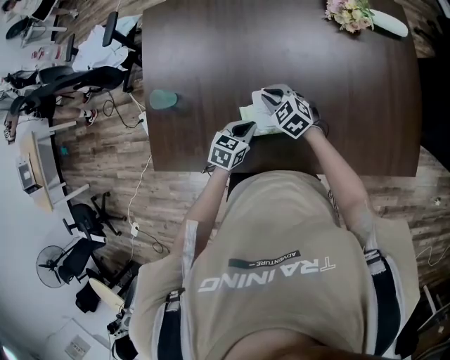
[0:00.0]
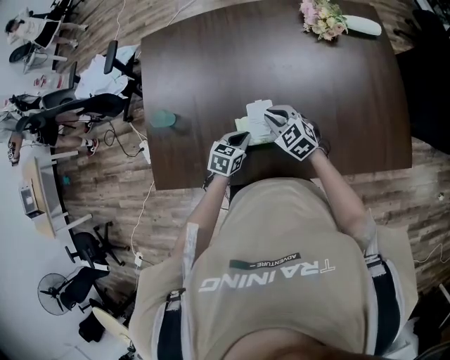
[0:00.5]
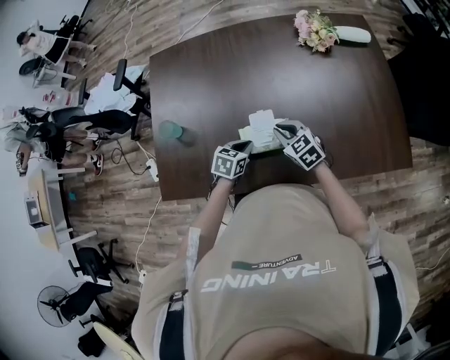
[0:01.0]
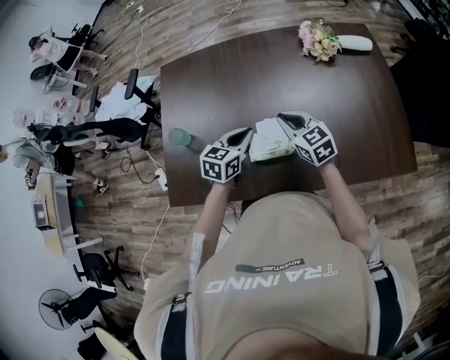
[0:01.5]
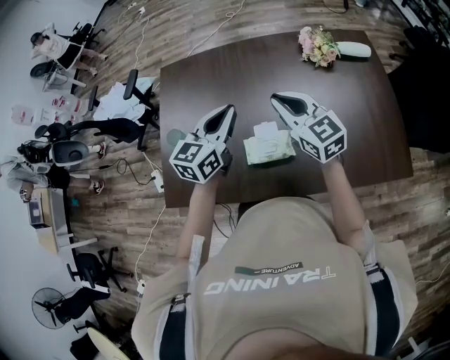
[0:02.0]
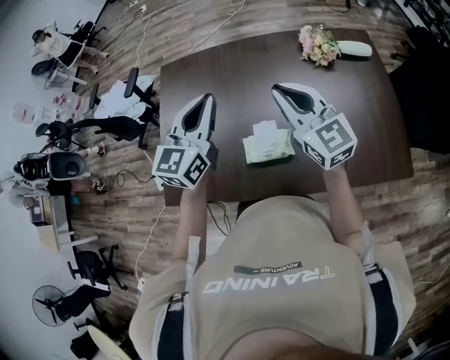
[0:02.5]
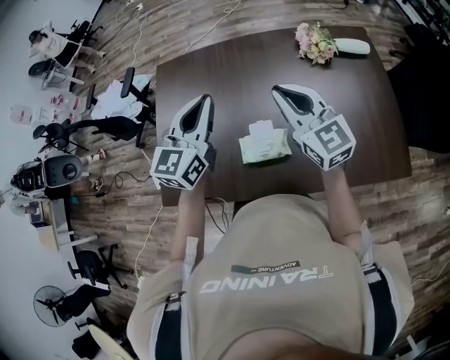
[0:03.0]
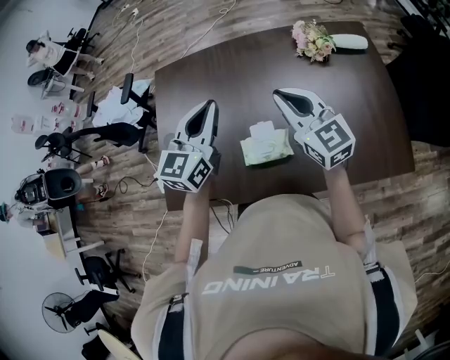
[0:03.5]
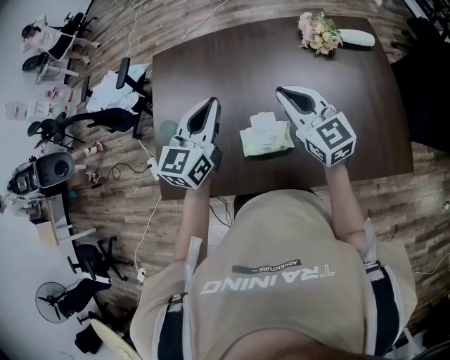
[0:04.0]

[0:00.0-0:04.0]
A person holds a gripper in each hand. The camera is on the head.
0:00.0 to 0:02.0: Both grippers move upward, some 30 cm. The right gripper angles its fingers upward, by about 30 degrees, while the left gripper angles its fingers upward, by approximately 40 degrees.

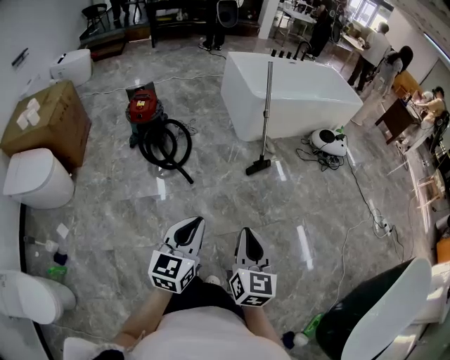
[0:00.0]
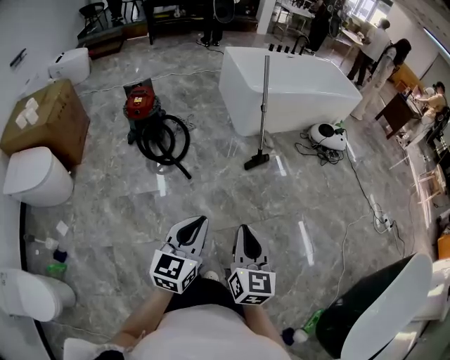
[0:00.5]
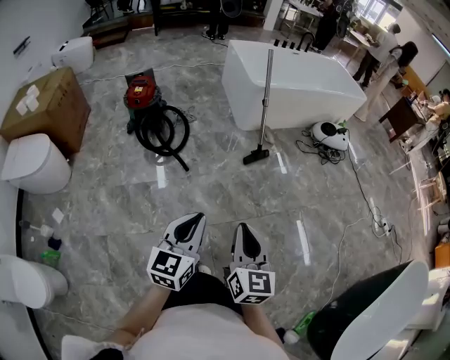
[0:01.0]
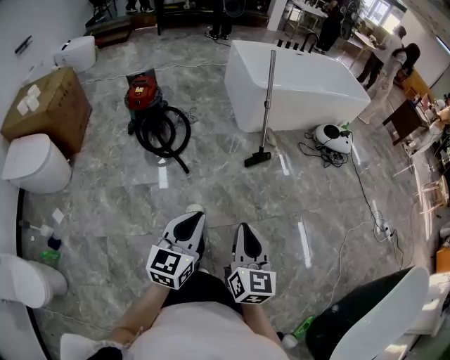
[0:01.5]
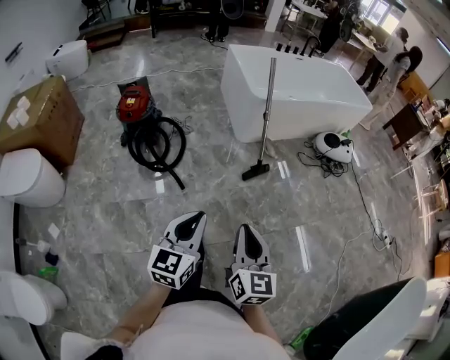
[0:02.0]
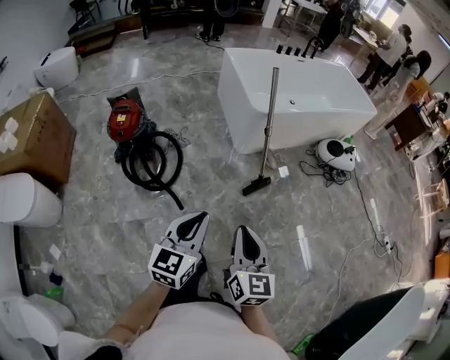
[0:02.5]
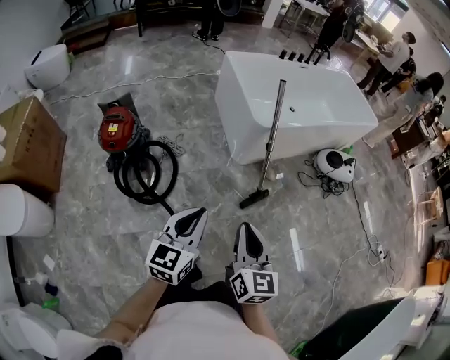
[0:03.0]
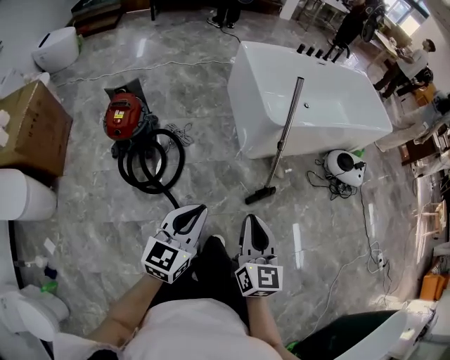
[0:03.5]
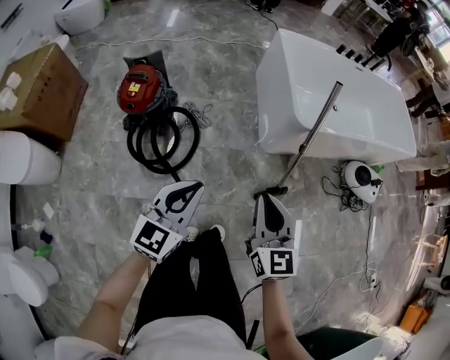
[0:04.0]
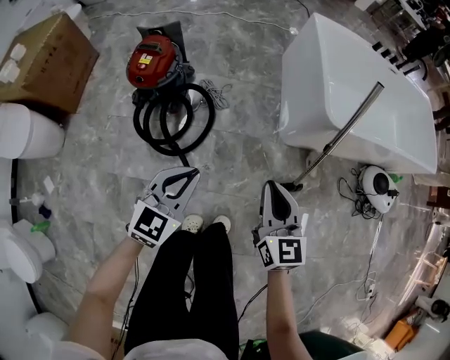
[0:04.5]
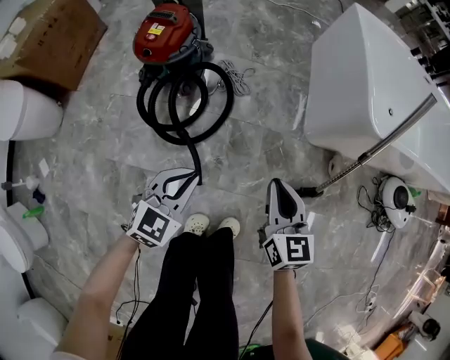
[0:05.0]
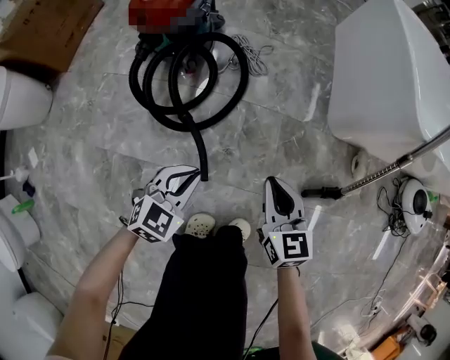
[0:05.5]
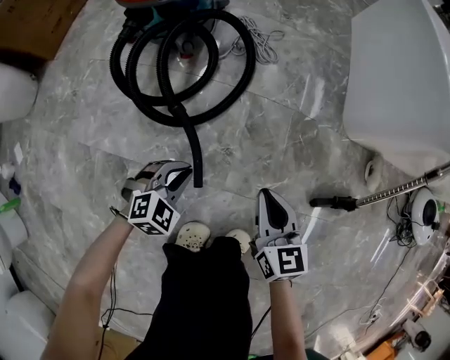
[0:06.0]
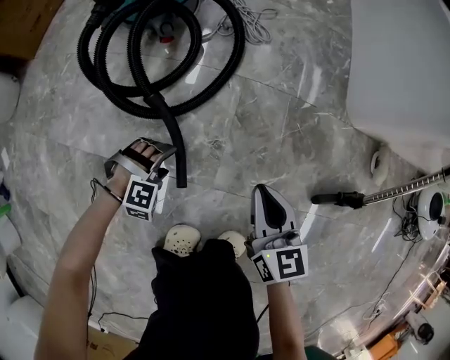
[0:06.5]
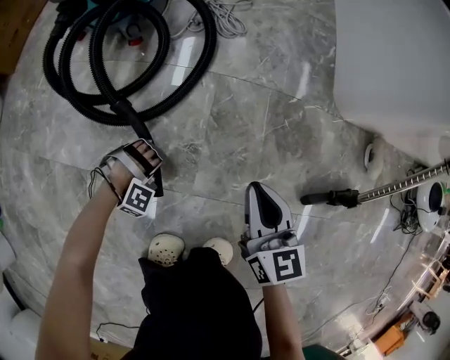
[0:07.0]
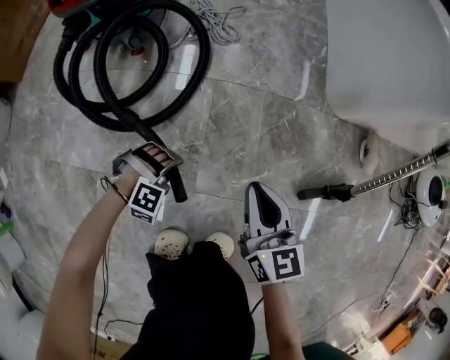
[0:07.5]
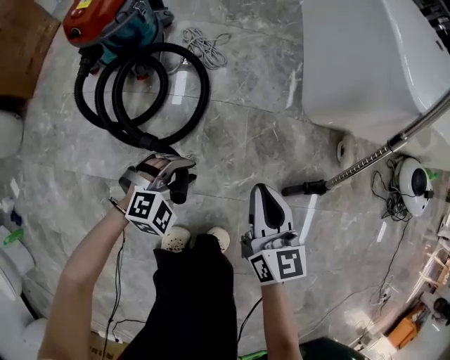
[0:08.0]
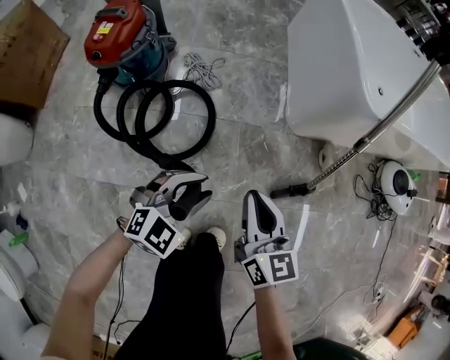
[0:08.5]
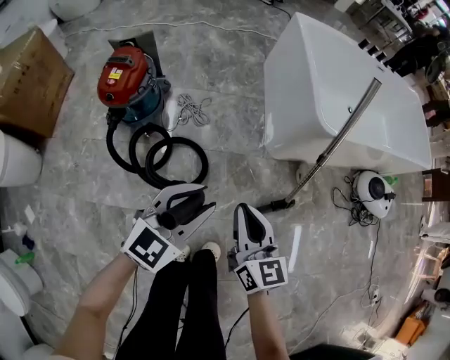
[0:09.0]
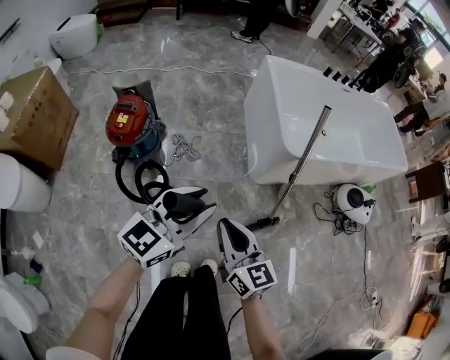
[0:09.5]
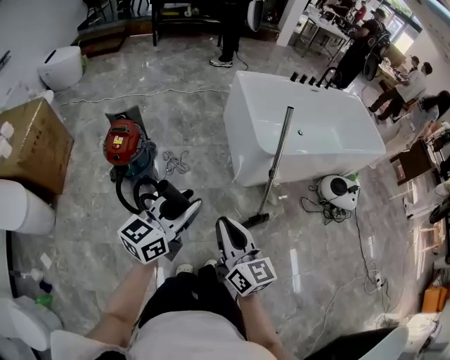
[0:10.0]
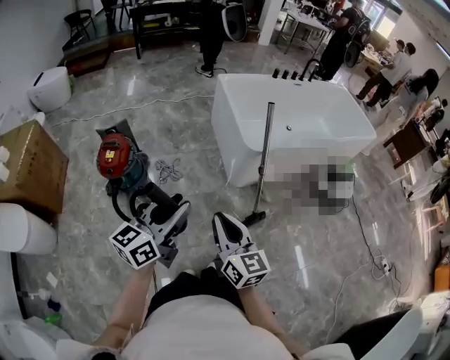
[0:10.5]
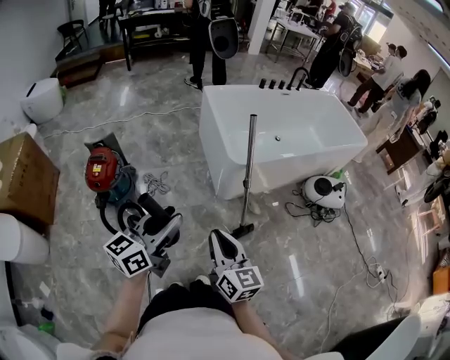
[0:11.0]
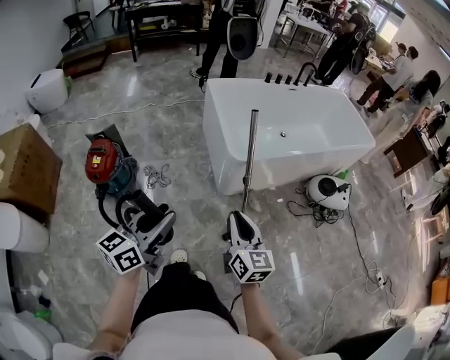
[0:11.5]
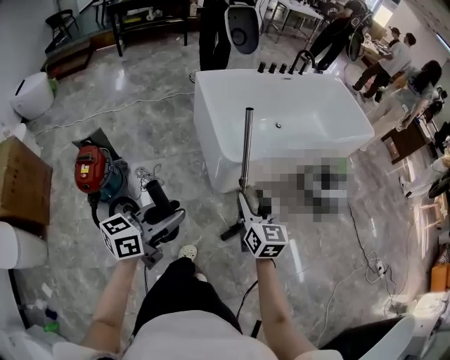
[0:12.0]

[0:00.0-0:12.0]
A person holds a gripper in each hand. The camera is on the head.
0:00.0 to 0:02.0: Both grippers travel together forward, approximately 15 cm.
0:02.0 to 0:04.0: The two grippers travel together, forward, approximately 40 cm. The right gripper rotates some 20 degrees.
0:04.0 to 0:06.0: Both grippers move downward, roughly 60 cm. The left gripper points its fingers about 40 degrees further downward; the right gripper turns by some 30 degrees.
0:06.0 to 0:08.0: The left gripper moves roughly 20 cm downward and comes back, swivels approximately 20 degrees, and opens its fingers. The right gripper changes place by about 15 cm.
0:08.0 to 0:10.0: Both grippers move upward, some 60 cm. The left gripper tilts its fingers some 50 degrees upward.
0:10.0 to 0:12.0: The left gripper travels forward and to the right by about 15 cm, and swivels approximately 20 degrees, while the right gripper heads forward and to the right, covering roughly 30 cm, swivels approximately 20 degrees, and opens its fingers.

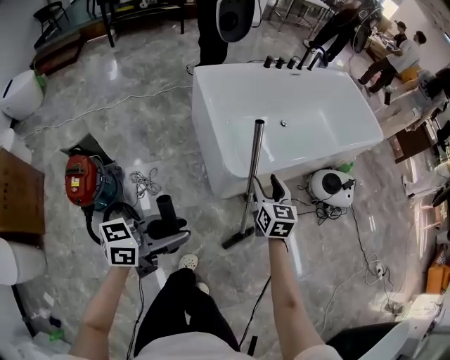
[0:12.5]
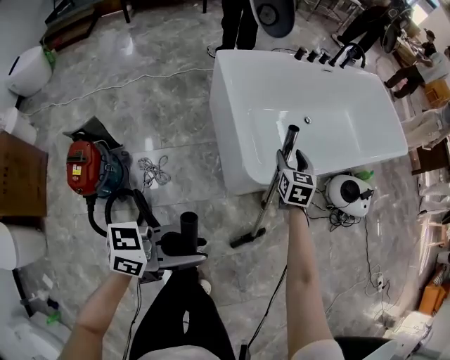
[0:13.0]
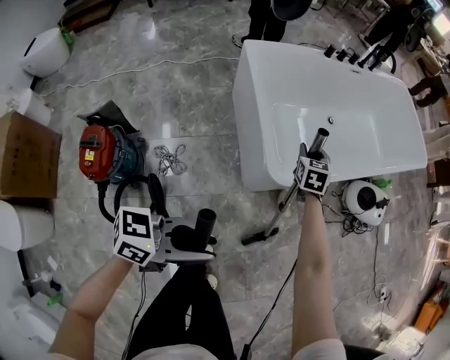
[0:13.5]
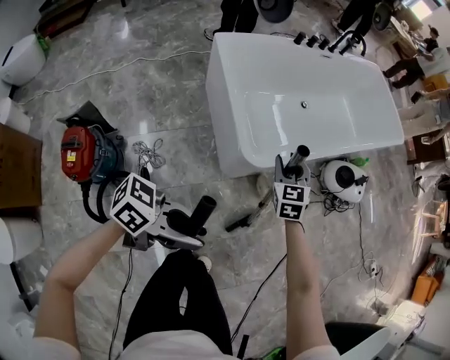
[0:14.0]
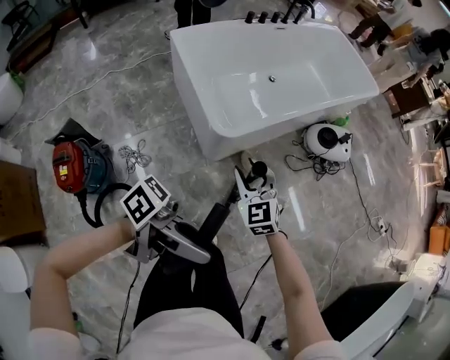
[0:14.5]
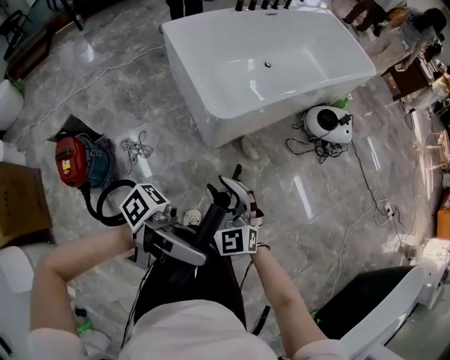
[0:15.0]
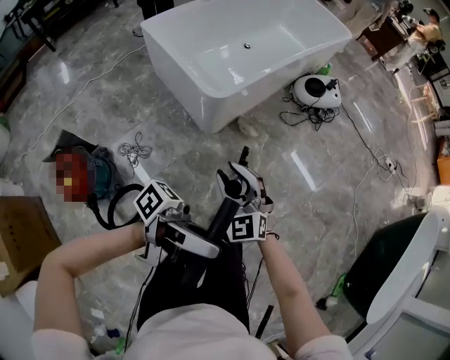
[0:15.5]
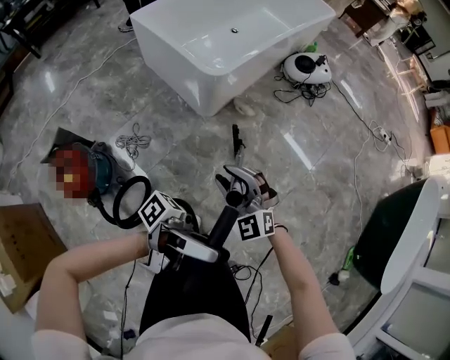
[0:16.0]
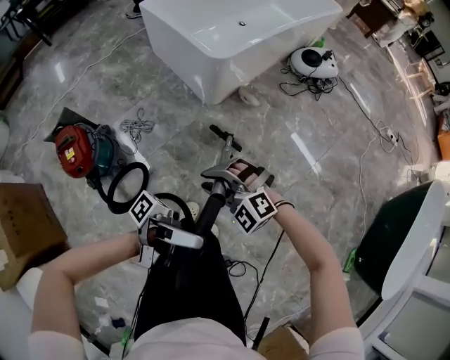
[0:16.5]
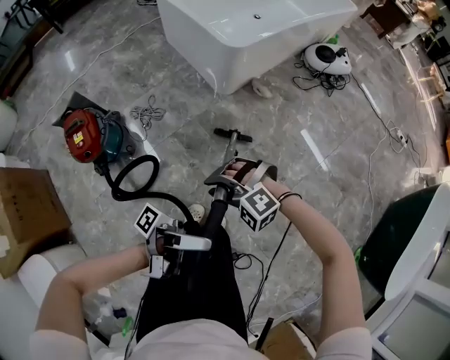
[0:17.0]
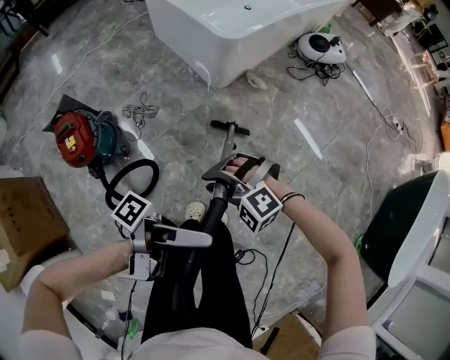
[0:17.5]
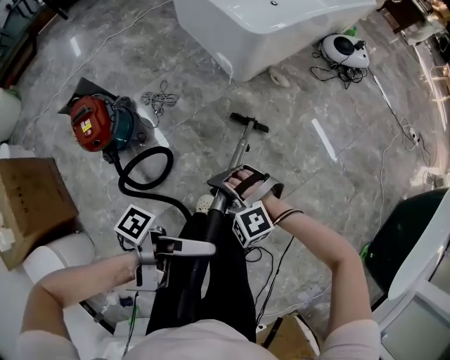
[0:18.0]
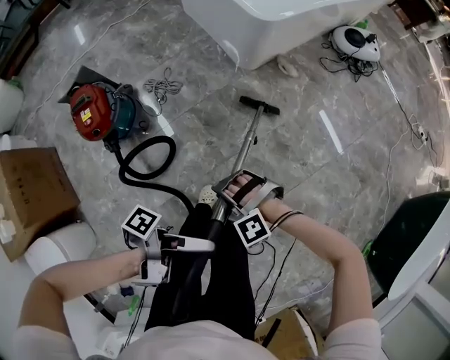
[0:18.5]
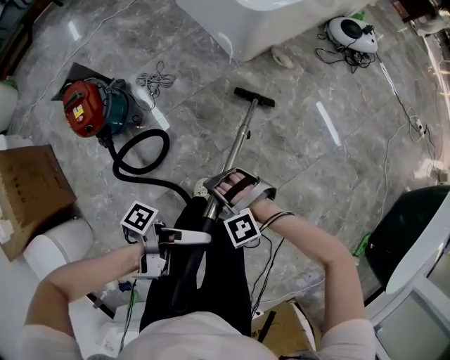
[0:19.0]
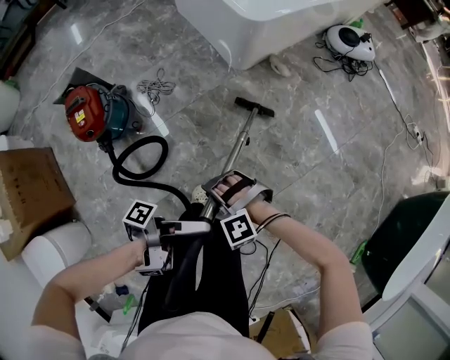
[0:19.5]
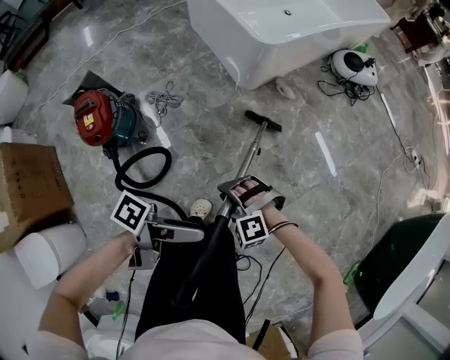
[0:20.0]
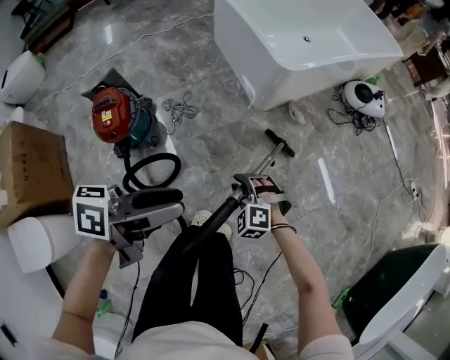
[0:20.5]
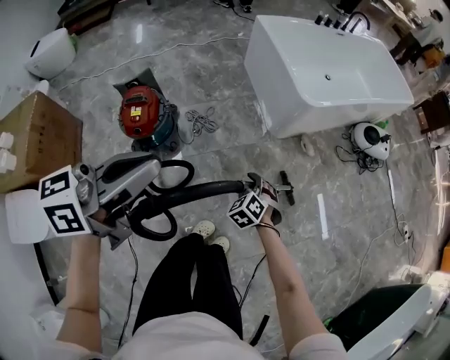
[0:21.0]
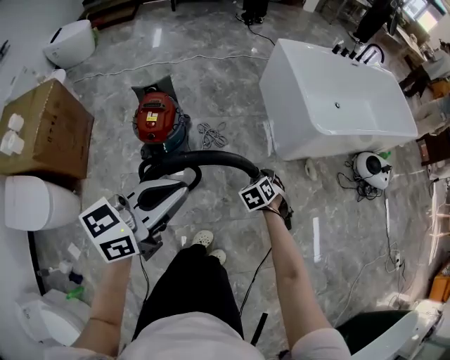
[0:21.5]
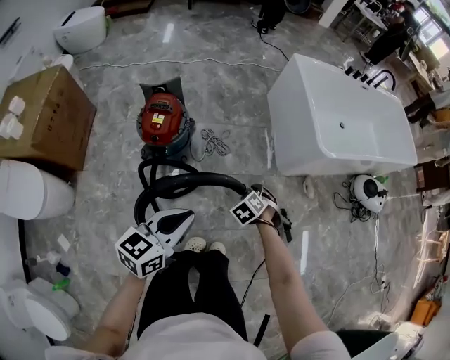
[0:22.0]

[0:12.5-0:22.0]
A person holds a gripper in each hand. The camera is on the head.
0:12.5 to 0:14.5: The right gripper travels downward and back again, about 10 cm each way, and turns by approximately 30 degrees. Meanwhile the left gripper ends up about 15 cm from where it was, and rotates about 70 degrees.
0:14.5 to 0:16.5: The right gripper moves some 40 cm, and rotates approximately 40 degrees, while the left gripper ends up approximately 30 cm from where it was, and turns by some 40 degrees.
0:16.5 to 0:18.0: The left gripper ends up approximately 10 cm from where it was, and angles its fingers downward, by some 30 degrees, while the right gripper shifts by roughly 15 cm.
0:18.0 to 0:20.0: Both grippers move downward, roughly 5 cm. The left gripper swivels some 30 degrees, and opens its fingers.
0:20.0 to 0:22.0: The right gripper shifts by roughly 20 cm, and rotates approximately 40 degrees. The left gripper goes upward and returns, some 25 cm each way, turns by roughly 90 degrees, and closes up.

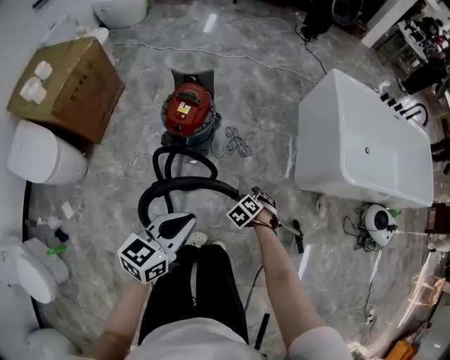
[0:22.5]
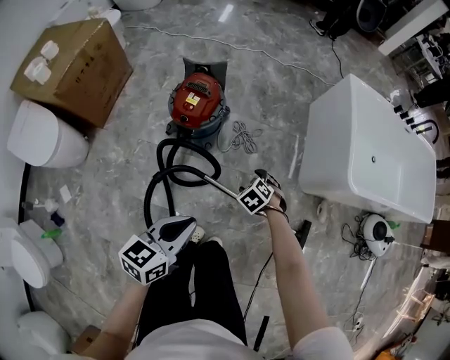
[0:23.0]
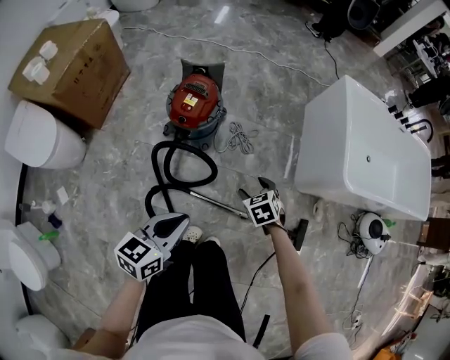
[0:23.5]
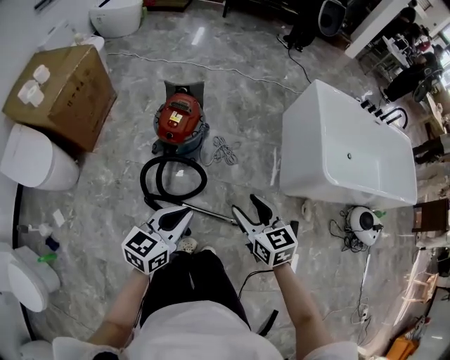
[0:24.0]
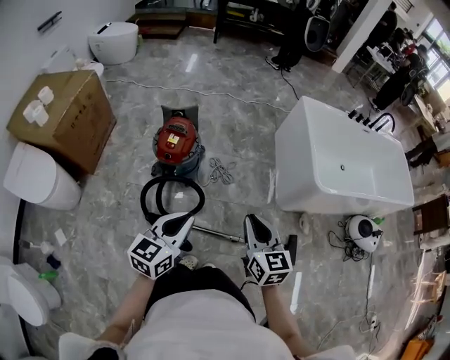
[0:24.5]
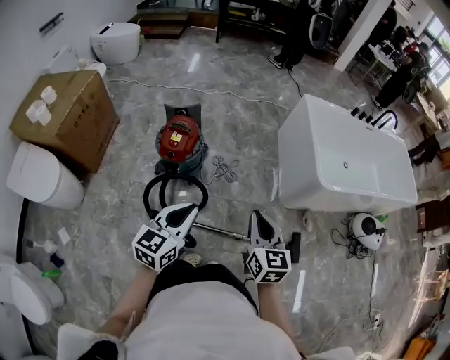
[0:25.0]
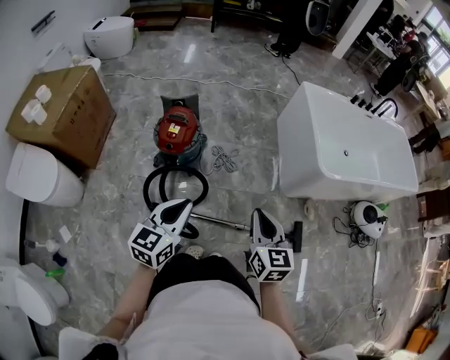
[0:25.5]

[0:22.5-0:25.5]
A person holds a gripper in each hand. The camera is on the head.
0:22.5 to 0:24.0: The right gripper goes about 30 cm upward, and tilts its fingers roughly 50 degrees upward.
0:24.0 to 0:25.5: The right gripper travels to the right by approximately 5 cm, changes its angle by about 30 degrees, and closes up.
